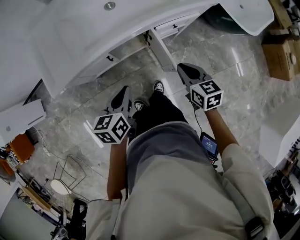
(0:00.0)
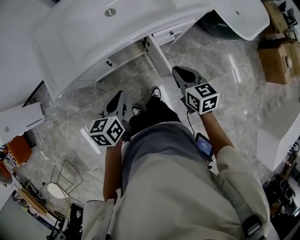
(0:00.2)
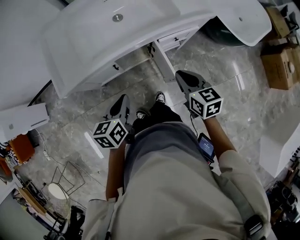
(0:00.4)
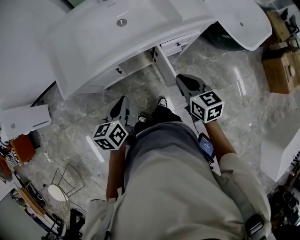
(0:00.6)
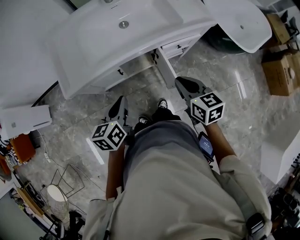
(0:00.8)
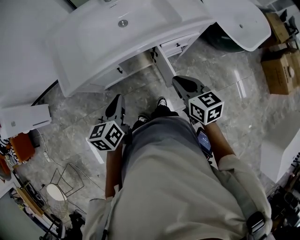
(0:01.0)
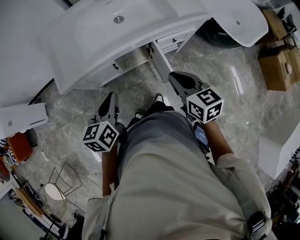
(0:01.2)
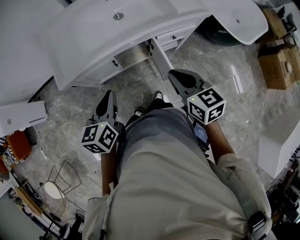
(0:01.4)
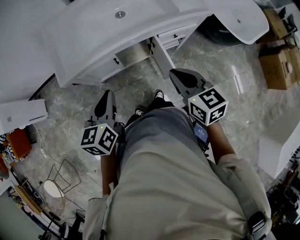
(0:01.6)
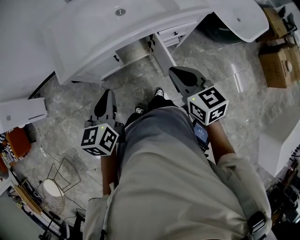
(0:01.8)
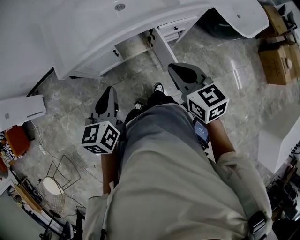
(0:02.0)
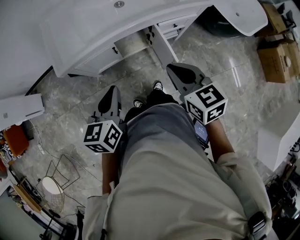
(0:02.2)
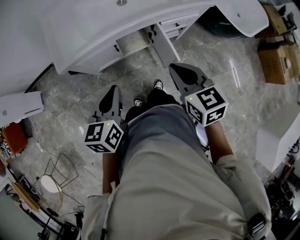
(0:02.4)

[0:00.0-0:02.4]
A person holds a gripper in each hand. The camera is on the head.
0:00.0 to 0:01.2: The grippers both shift upward and to the left by some 10 cm.
0:01.2 to 0:02.4: The right gripper goes approximately 10 cm to the left and backward; the left gripper moves backward, about 5 cm.

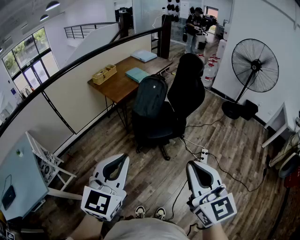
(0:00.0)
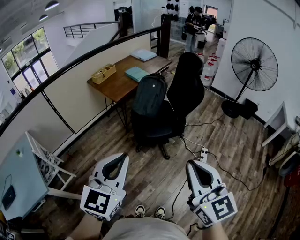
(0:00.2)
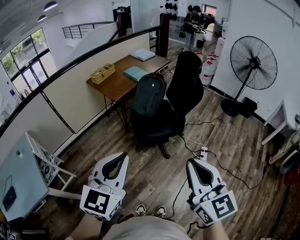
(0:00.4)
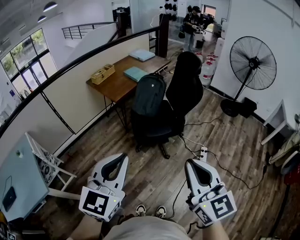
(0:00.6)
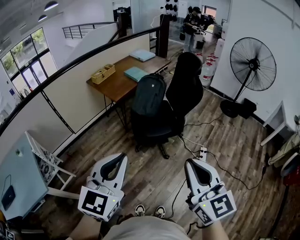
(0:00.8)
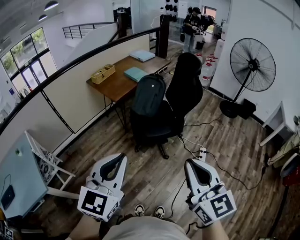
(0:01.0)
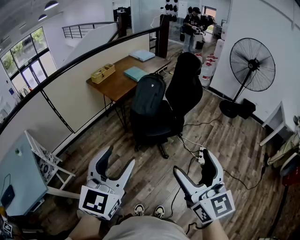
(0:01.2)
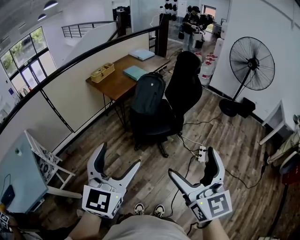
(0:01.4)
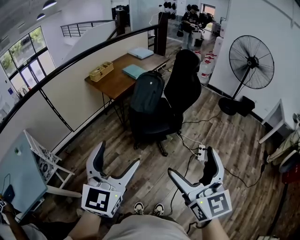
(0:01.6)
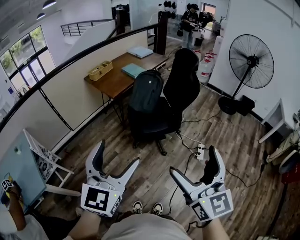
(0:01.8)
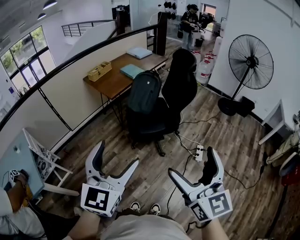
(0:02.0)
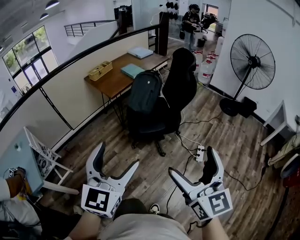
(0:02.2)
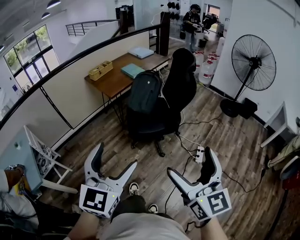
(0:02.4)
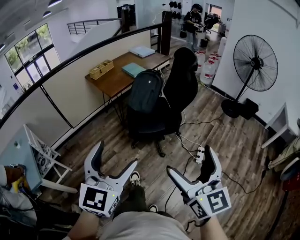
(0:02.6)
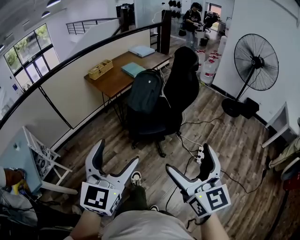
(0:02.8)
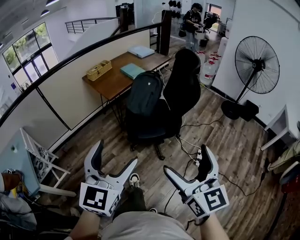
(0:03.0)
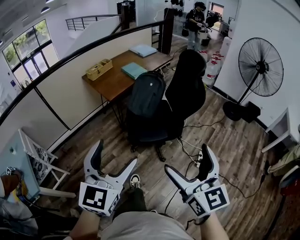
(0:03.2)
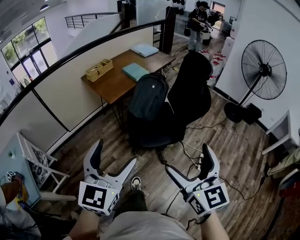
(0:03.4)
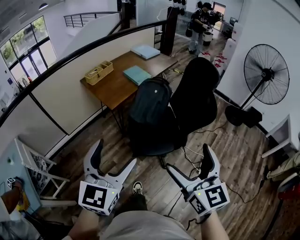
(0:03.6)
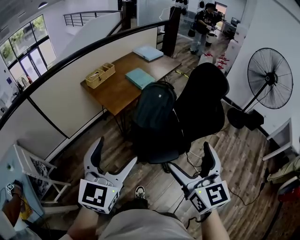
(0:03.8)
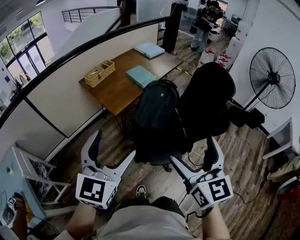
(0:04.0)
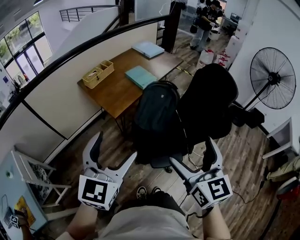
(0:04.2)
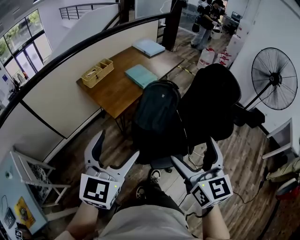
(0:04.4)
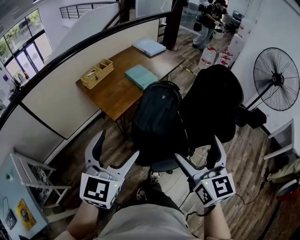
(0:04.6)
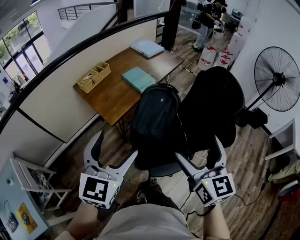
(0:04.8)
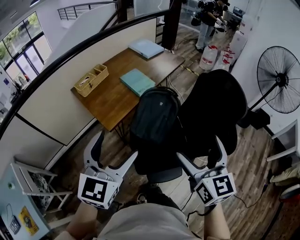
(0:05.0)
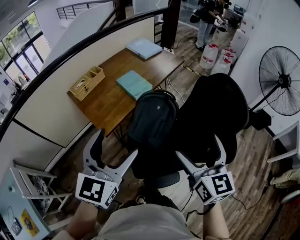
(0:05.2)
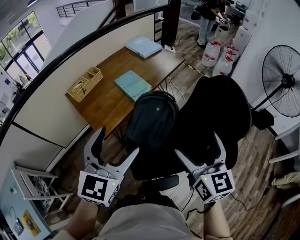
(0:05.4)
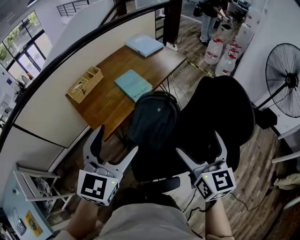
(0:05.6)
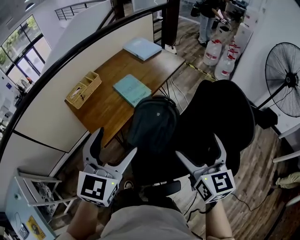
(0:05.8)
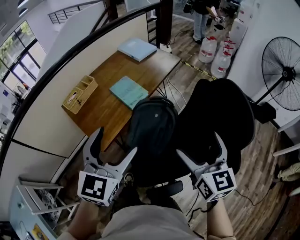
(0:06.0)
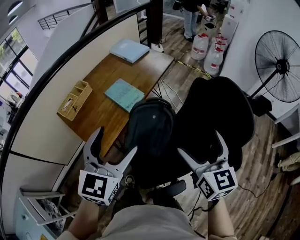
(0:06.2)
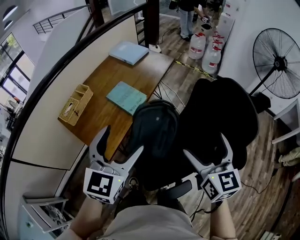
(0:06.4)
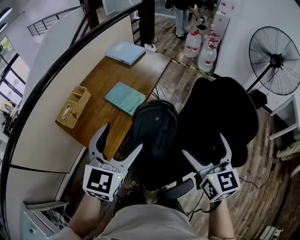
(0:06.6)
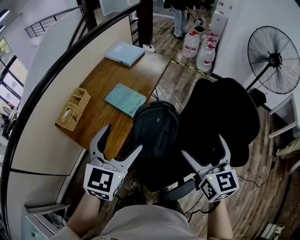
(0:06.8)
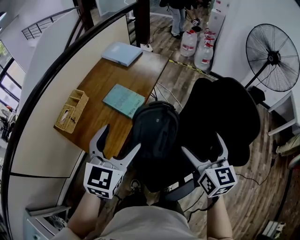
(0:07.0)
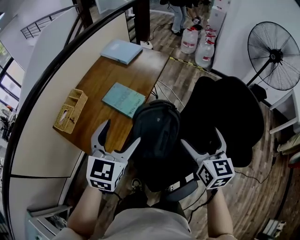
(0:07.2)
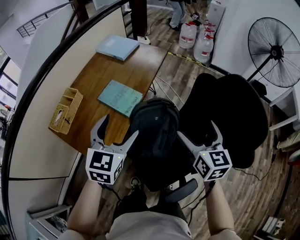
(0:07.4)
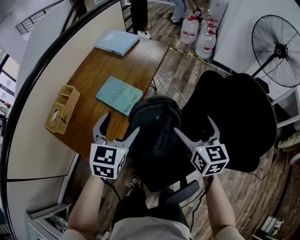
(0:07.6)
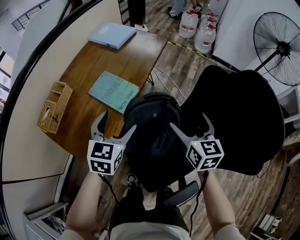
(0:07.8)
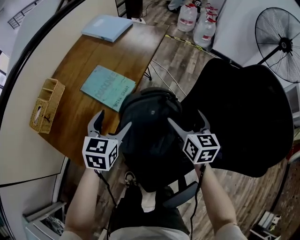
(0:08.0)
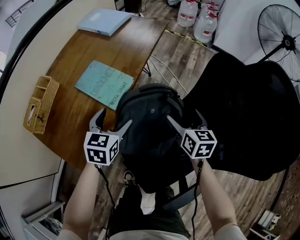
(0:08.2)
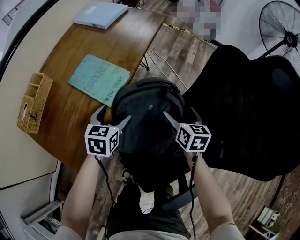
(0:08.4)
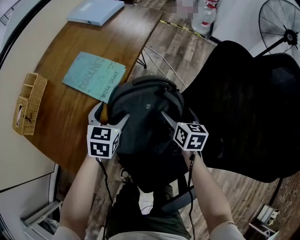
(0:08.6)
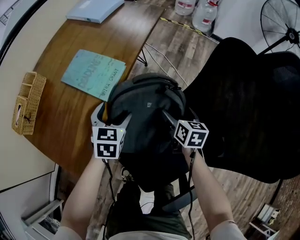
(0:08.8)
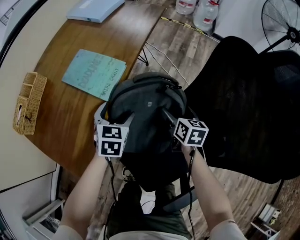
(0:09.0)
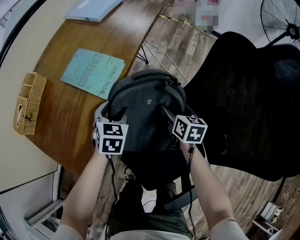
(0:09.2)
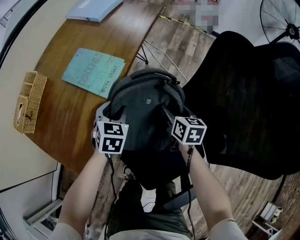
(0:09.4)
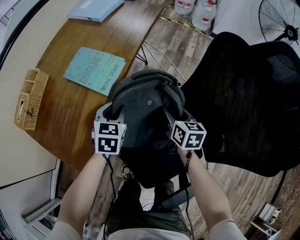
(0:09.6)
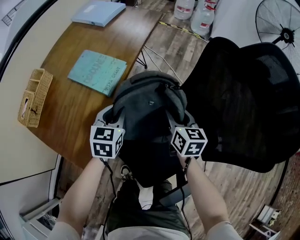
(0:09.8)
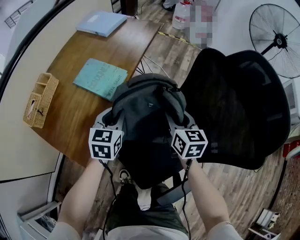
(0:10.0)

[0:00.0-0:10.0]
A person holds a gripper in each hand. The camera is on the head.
0:00.0 to 0:01.4: The right gripper opens up. Meanwhile the left gripper opens its fingers.
0:01.4 to 0:02.8: Both grippers travel together to the right, some 5 cm.
0:02.8 to 0:04.2: The pair of grippers is taken forward, some 40 cm.
0:04.2 to 0:05.8: Both grippers travel together forward, about 30 cm.
0:05.8 to 0:07.2: The right gripper heads forward and to the left, covering about 10 cm; the left gripper travels forward, to the left and downward by some 15 cm.
0:07.2 to 0:08.6: The two grippers go approximately 40 cm downward and forward. The right gripper swivels about 20 degrees; the left gripper turns by roughly 20 degrees.
0:08.6 to 0:10.0: The right gripper goes some 15 cm upward, and closes its fingers, while the left gripper goes approximately 10 cm upward and backward, and closes its fingers.

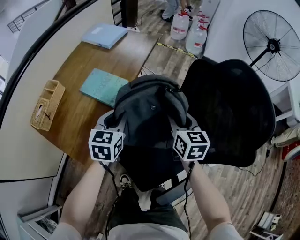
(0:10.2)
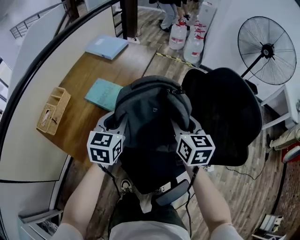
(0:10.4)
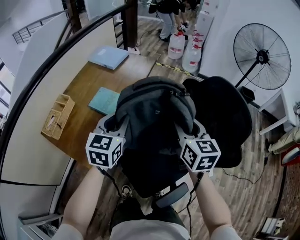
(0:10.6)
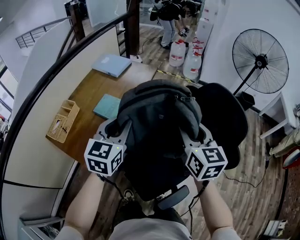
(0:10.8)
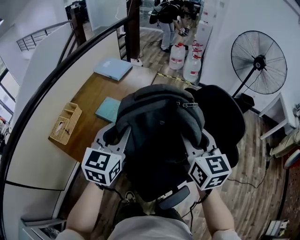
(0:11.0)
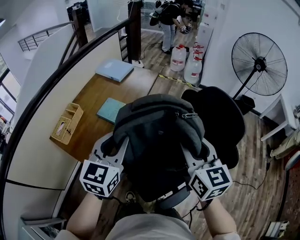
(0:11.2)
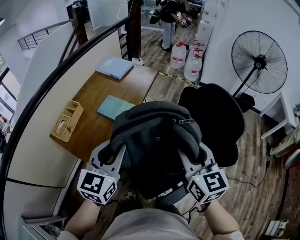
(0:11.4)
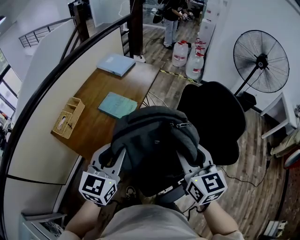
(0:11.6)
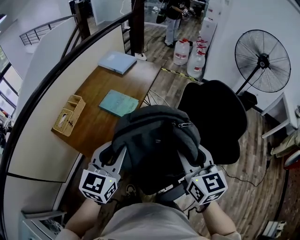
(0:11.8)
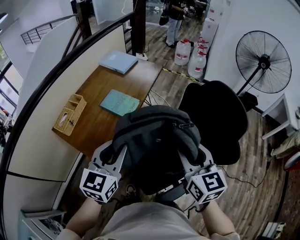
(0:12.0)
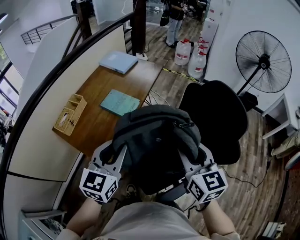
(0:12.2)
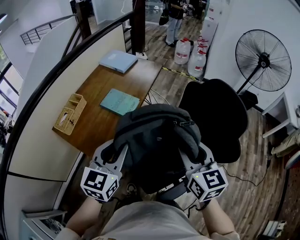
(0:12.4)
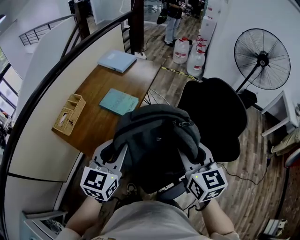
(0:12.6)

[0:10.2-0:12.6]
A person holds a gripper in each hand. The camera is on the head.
0:10.2 to 0:11.4: Both grippers move upward and backward, approximately 30 cm.
0:11.4 to 0:12.6: The grippers stay close to where they were, moving slightly.

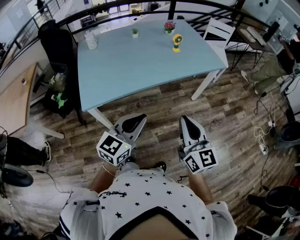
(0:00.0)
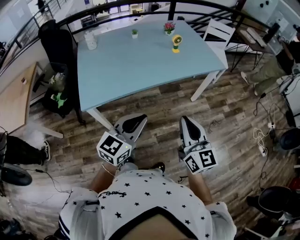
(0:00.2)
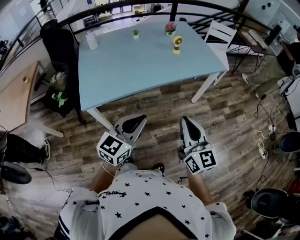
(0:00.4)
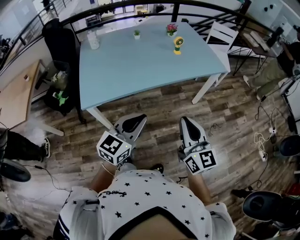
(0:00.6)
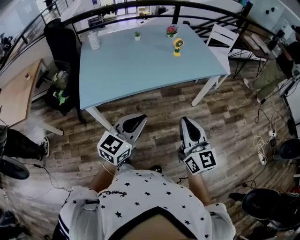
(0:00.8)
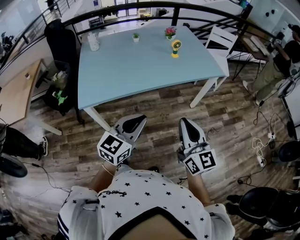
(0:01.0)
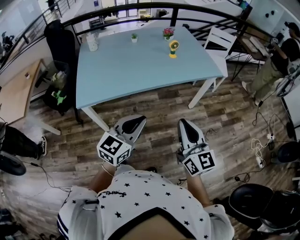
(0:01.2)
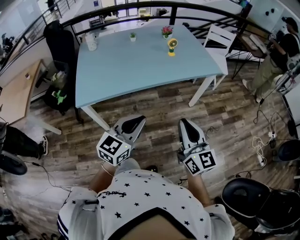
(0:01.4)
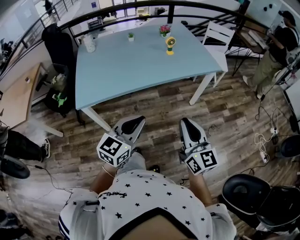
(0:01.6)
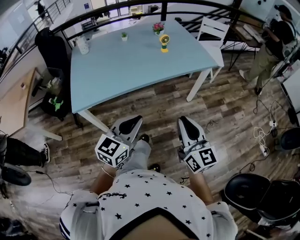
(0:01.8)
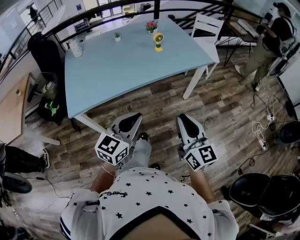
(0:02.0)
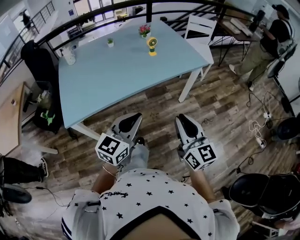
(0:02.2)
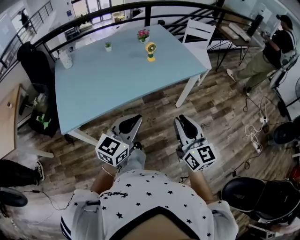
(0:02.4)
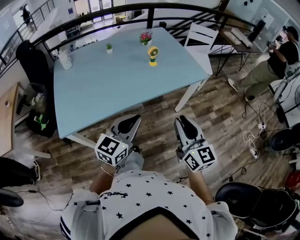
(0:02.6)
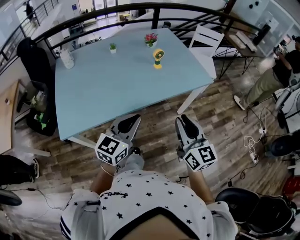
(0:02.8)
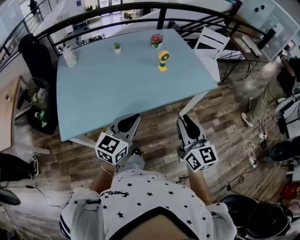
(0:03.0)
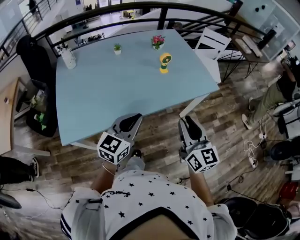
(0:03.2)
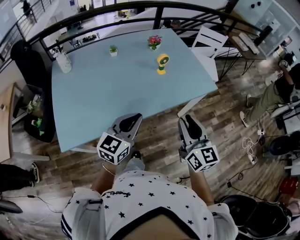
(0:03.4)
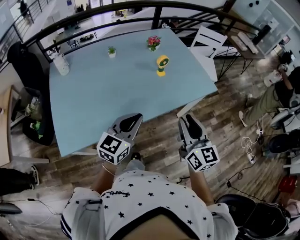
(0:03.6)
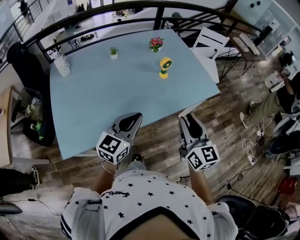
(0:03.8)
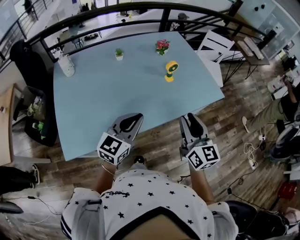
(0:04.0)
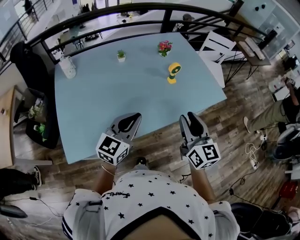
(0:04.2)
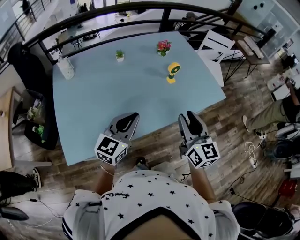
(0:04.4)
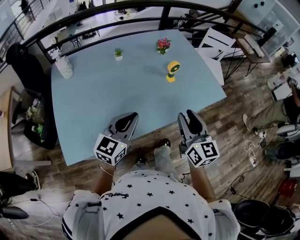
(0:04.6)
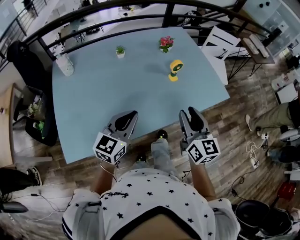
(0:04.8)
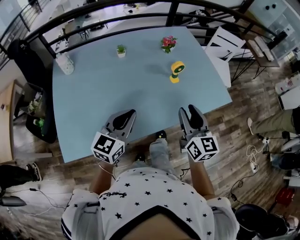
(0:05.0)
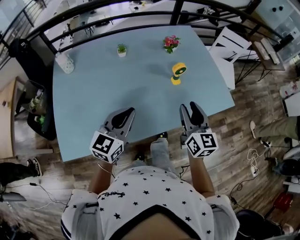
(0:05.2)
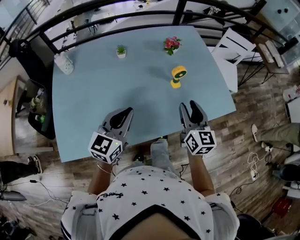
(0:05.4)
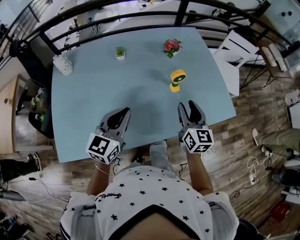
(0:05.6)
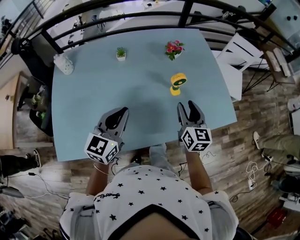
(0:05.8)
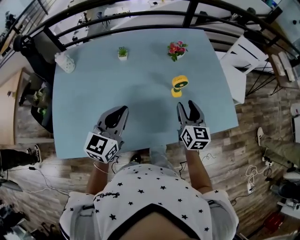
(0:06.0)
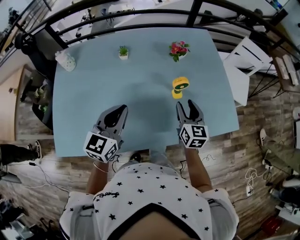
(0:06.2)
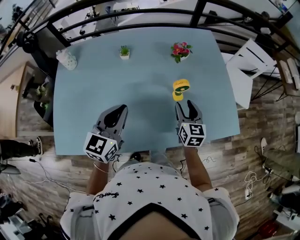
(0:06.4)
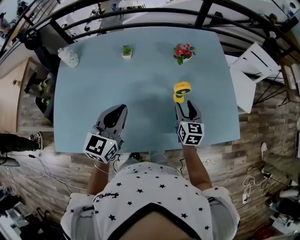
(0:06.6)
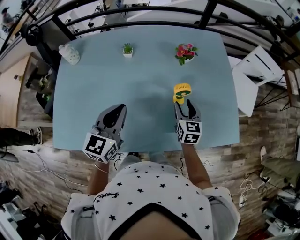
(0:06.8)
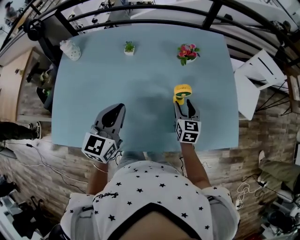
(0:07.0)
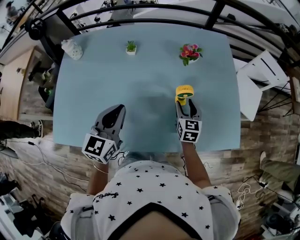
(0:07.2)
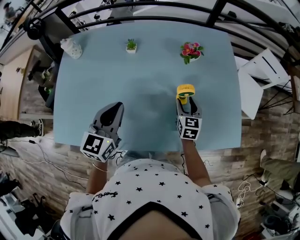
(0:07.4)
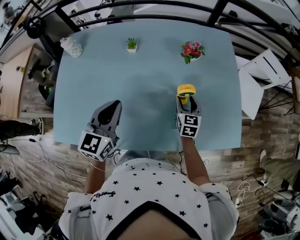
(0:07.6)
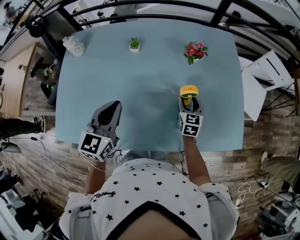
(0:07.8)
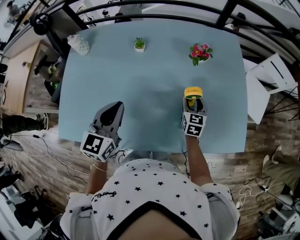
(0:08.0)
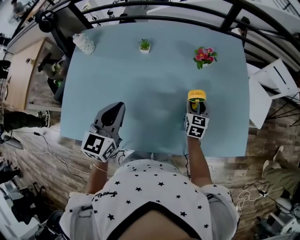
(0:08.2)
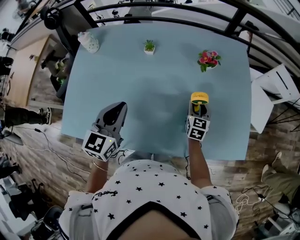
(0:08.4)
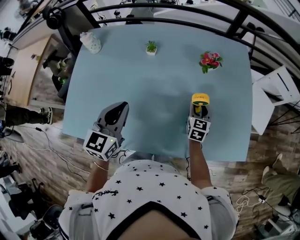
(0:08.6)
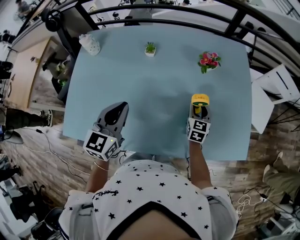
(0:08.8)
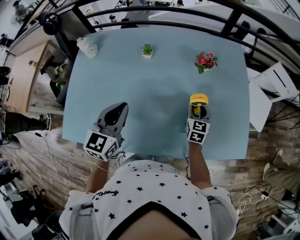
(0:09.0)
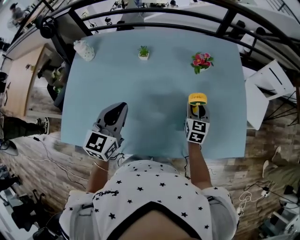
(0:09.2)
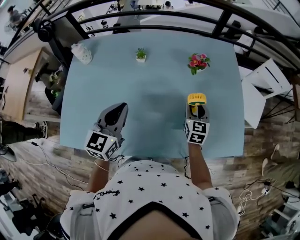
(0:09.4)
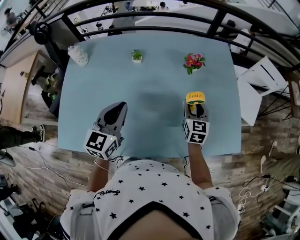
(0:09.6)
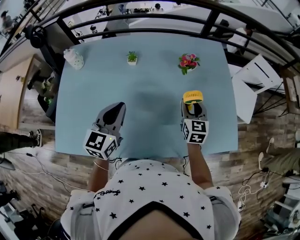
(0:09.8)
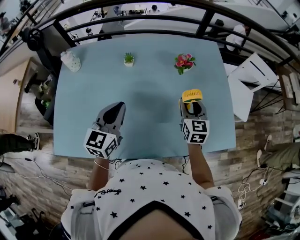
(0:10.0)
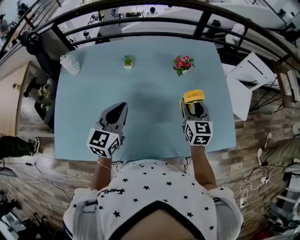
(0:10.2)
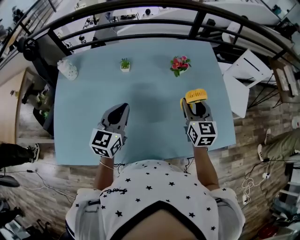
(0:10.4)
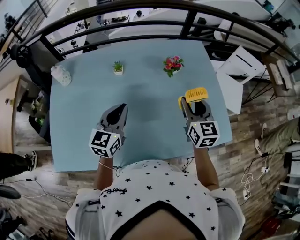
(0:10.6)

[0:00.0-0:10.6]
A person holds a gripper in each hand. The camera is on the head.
0:00.0 to 0:01.6: Both grippers travel together to the right, roughly 10 cm.
0:01.6 to 0:03.0: The two grippers go approximately 20 cm forward.
0:03.0 to 0:04.6: Both grippers move forward and to the left, some 15 cm.
0:04.6 to 0:06.0: The left gripper shifts some 15 cm forward, while the right gripper shifts approximately 25 cm forward and downward.
0:06.0 to 0:07.6: The right gripper travels downward and forward by some 15 cm.
0:07.6 to 0:09.0: The grippers make only small movements.
0:09.0 to 0:10.6: The right gripper is displaced upward by about 20 cm; the left gripper shifts about 5 cm forward.
